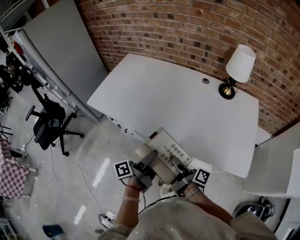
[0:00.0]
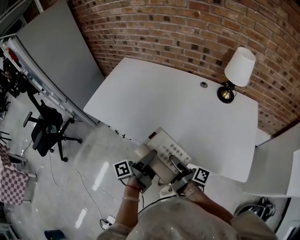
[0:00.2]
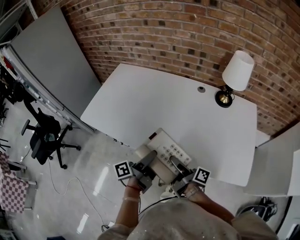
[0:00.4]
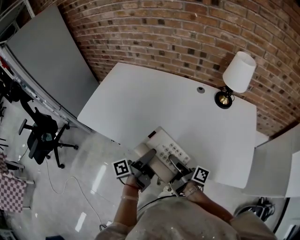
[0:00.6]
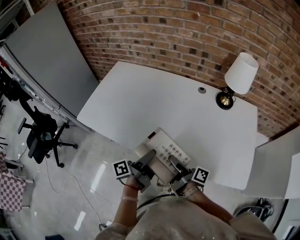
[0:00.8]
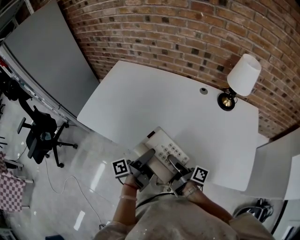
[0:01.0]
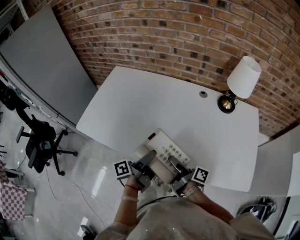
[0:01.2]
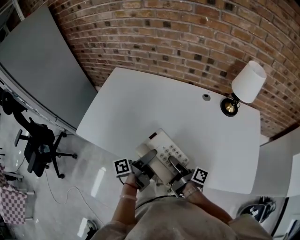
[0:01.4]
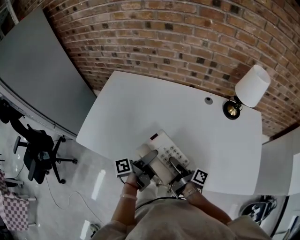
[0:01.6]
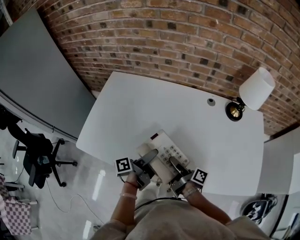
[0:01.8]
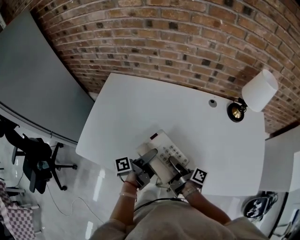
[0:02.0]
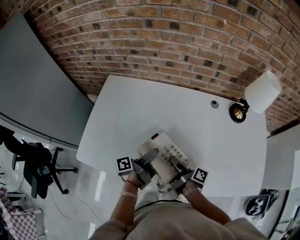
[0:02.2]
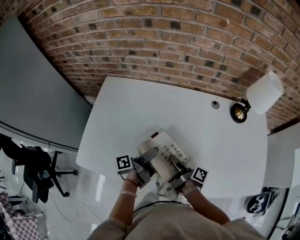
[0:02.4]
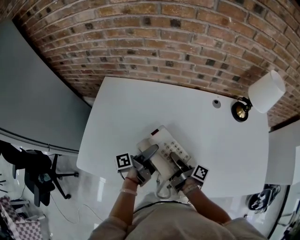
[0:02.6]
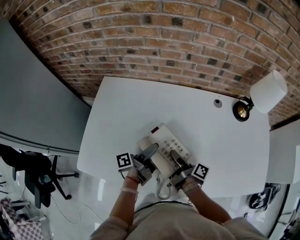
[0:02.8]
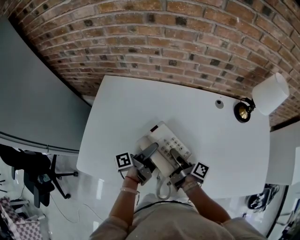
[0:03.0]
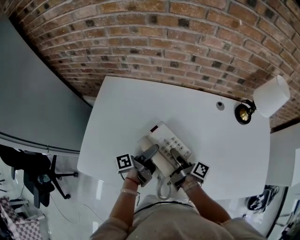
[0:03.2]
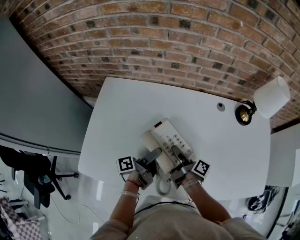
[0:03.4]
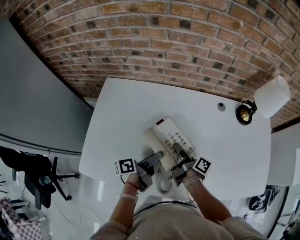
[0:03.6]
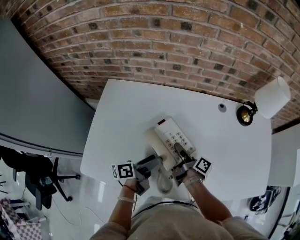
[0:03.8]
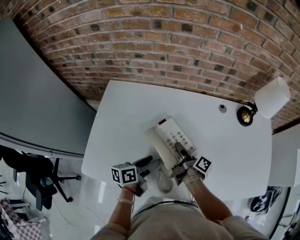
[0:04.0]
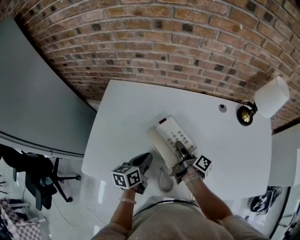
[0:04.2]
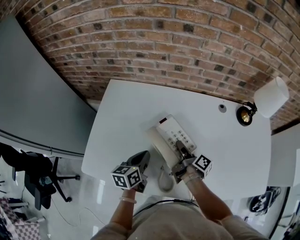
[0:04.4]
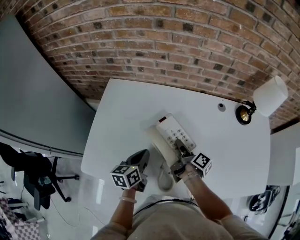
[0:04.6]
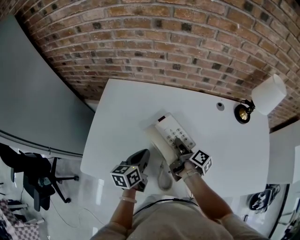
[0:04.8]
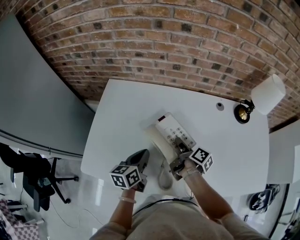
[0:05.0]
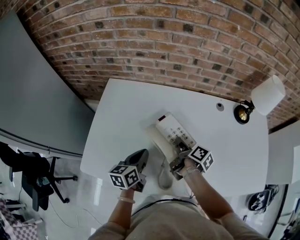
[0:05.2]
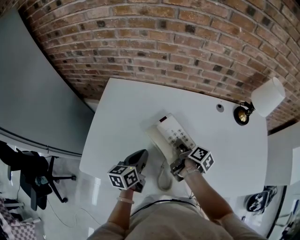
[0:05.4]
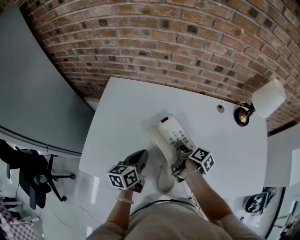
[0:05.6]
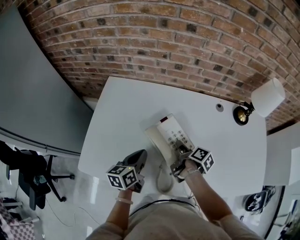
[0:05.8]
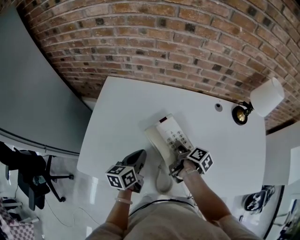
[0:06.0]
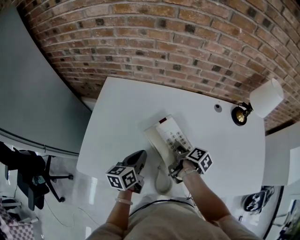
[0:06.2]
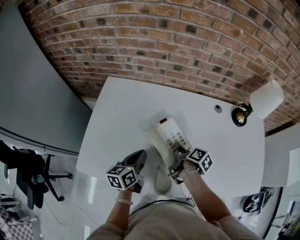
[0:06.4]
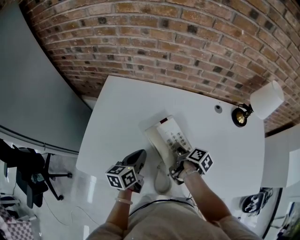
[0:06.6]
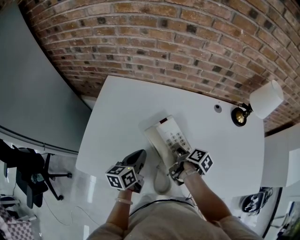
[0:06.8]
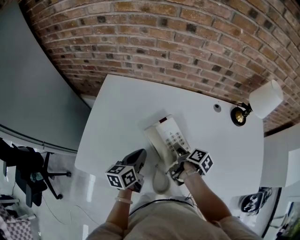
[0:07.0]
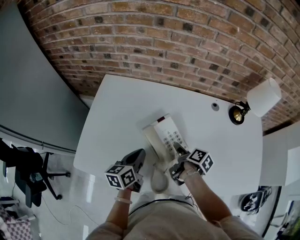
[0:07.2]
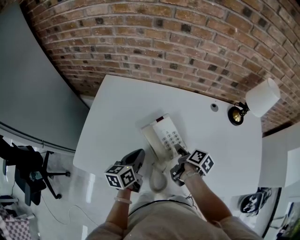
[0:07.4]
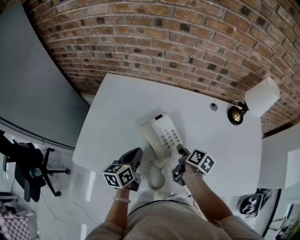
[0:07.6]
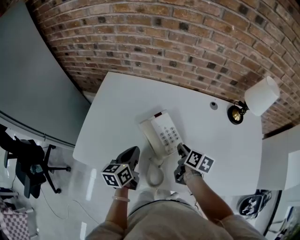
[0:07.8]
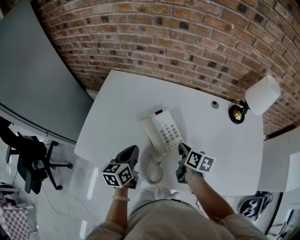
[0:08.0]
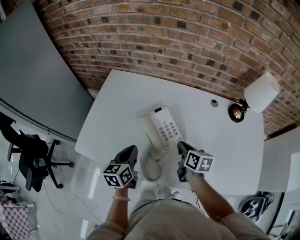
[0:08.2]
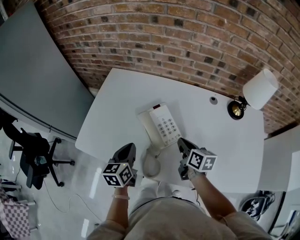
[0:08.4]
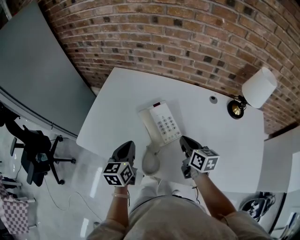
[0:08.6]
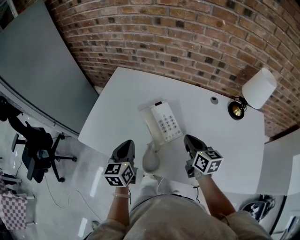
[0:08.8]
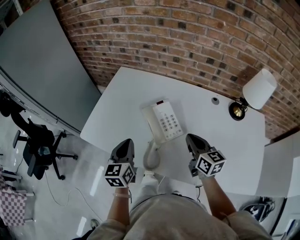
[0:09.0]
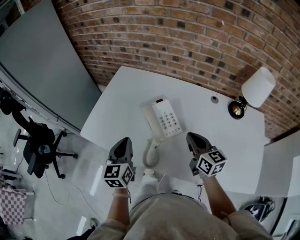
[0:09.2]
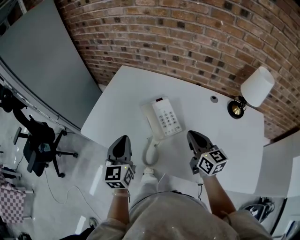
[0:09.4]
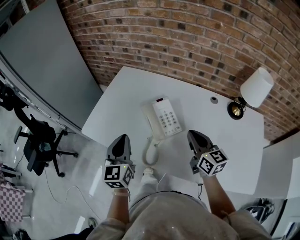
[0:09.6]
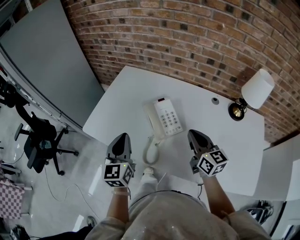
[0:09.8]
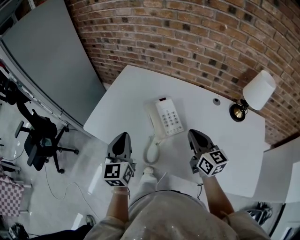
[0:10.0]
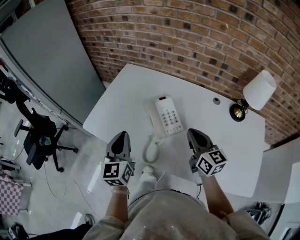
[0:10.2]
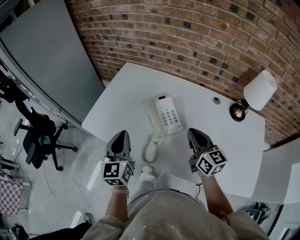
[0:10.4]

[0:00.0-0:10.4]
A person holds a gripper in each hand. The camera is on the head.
0:00.0 to 0:01.4: The left gripper changes place by roughly 20 cm.
0:01.4 to 0:03.0: The left gripper shifts by some 20 cm.
0:03.0 to 0:04.4: The left gripper shifts by some 5 cm, rotates around the line of its fingers by roughly 50 degrees, clockwise from behind, and closes up.
0:07.4 to 0:09.0: The left gripper ends up approximately 10 cm from where it was, and swivels some 30 degrees.
0:09.0 to 0:10.4: The left gripper shifts some 5 cm upward.

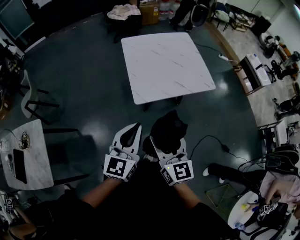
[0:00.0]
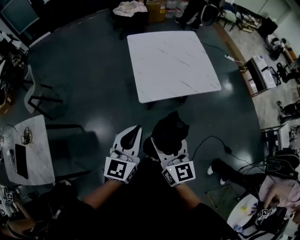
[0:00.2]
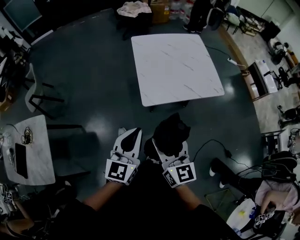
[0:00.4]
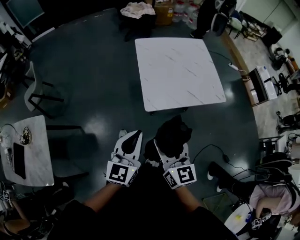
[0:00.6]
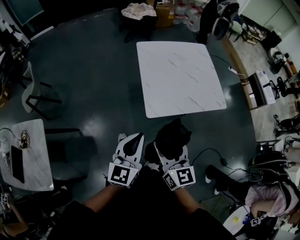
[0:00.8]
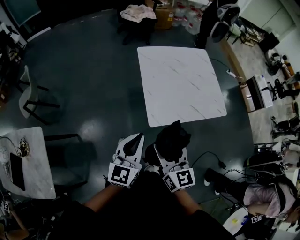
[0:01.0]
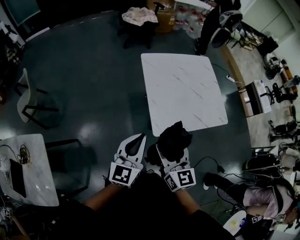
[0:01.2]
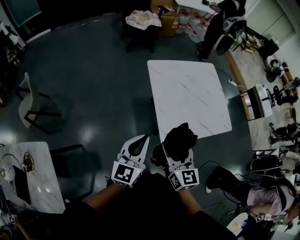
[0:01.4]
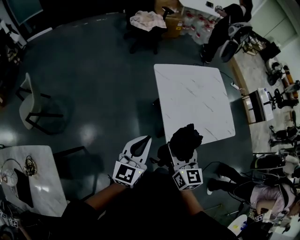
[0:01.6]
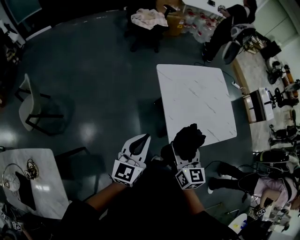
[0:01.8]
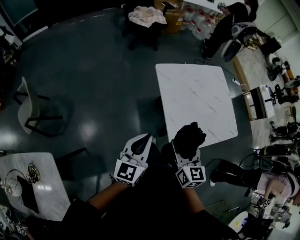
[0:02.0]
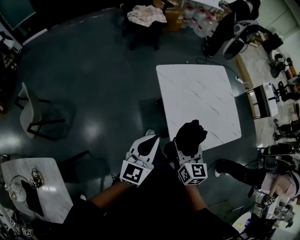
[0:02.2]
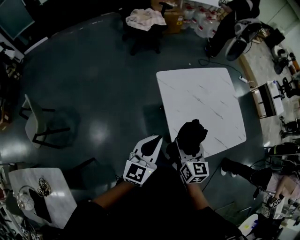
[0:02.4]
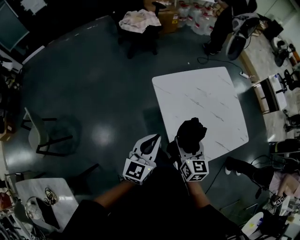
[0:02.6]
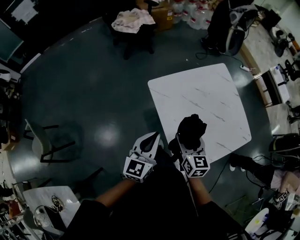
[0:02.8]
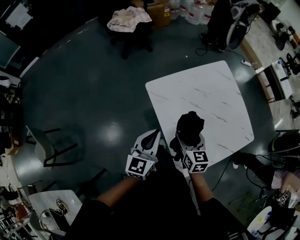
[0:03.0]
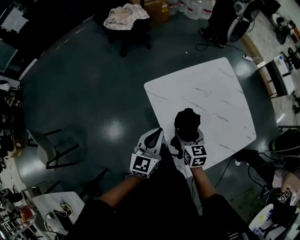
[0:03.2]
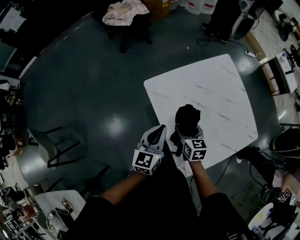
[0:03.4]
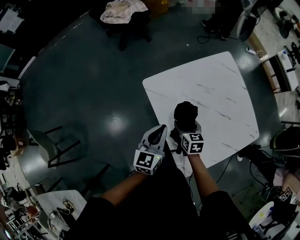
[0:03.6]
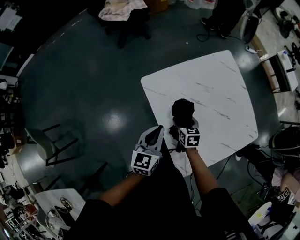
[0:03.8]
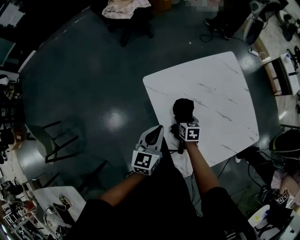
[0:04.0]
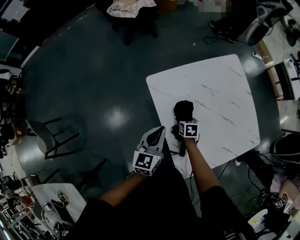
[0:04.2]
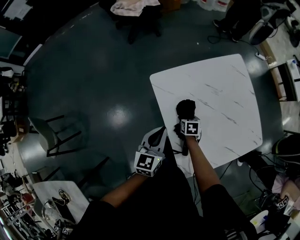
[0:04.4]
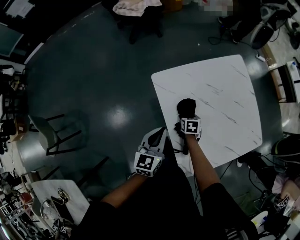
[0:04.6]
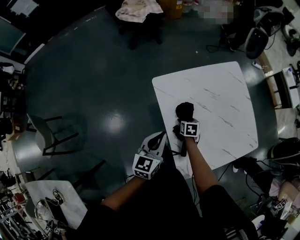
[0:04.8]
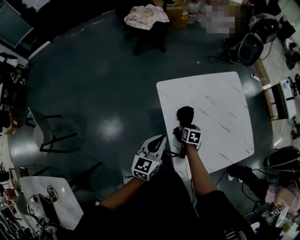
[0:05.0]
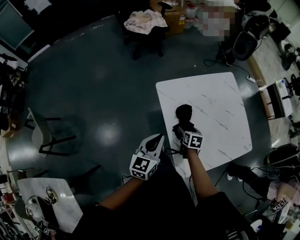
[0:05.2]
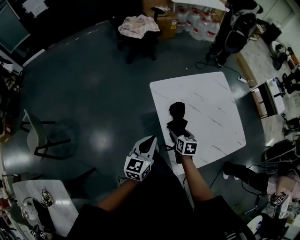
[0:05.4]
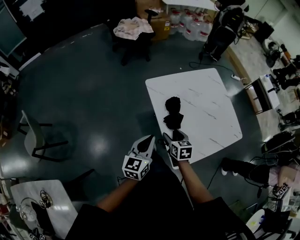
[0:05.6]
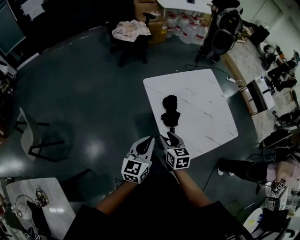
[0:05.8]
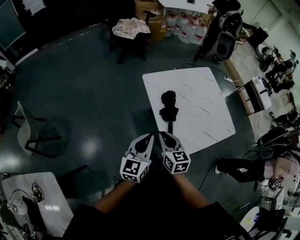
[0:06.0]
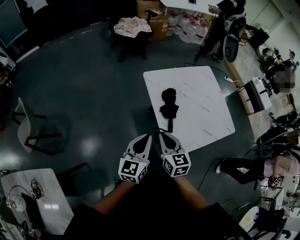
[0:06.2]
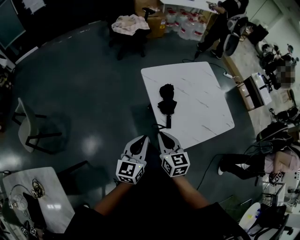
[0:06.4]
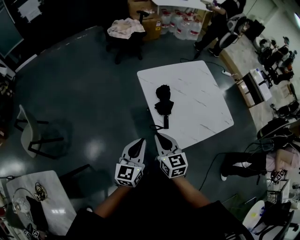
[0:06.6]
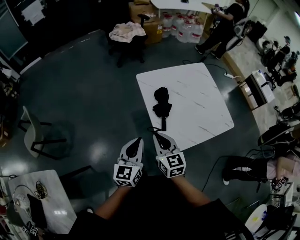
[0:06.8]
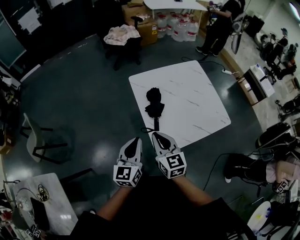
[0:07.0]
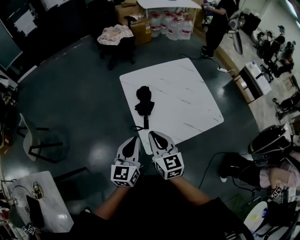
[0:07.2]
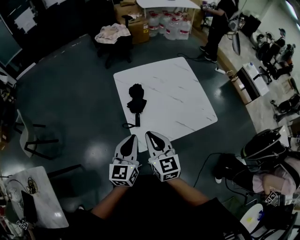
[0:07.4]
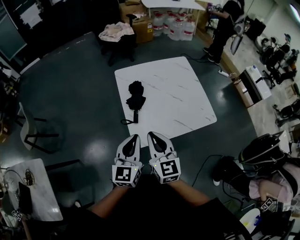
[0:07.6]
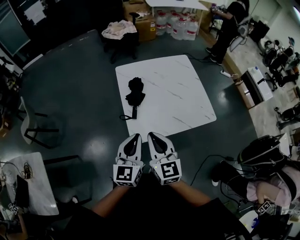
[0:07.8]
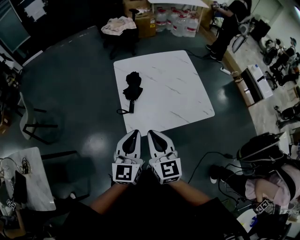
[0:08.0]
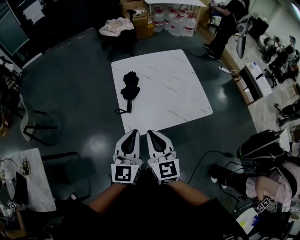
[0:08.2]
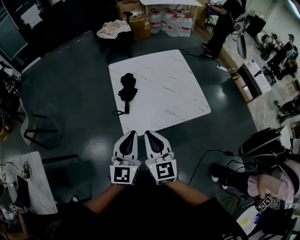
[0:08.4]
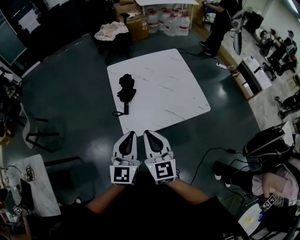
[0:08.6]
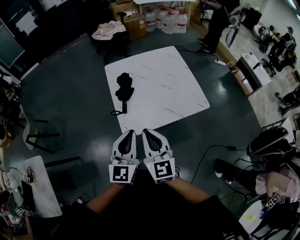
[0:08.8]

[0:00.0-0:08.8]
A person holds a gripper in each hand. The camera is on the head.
0:00.0 to 0:01.4: The grippers both shift forward and to the left by some 30 cm.
0:01.4 to 0:03.0: The left gripper moves forward, about 35 cm, while the right gripper heads forward and downward, covering roughly 35 cm, and rotates some 20 degrees.
0:03.0 to 0:04.4: The left gripper shifts roughly 10 cm downward, while the right gripper shifts approximately 25 cm downward, and angles its fingers downward, by about 40 degrees.
0:04.4 to 0:05.8: The right gripper goes roughly 35 cm upward and backward, and tilts its fingers approximately 30 degrees upward. Meanwhile the left gripper heads backward and upward, covering some 25 cm.
0:05.8 to 0:07.4: The right gripper is displaced to the right, upward and backward by approximately 25 cm, turns by some 20 degrees, and closes up. Meanwhile the left gripper heads to the right and backward, covering roughly 20 cm.
0:07.4 to 0:08.8: The right gripper goes roughly 15 cm backward and to the right, while the left gripper travels to the right and backward by approximately 15 cm.

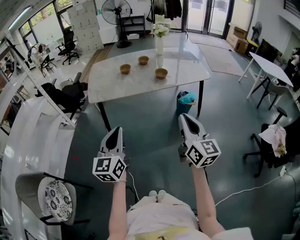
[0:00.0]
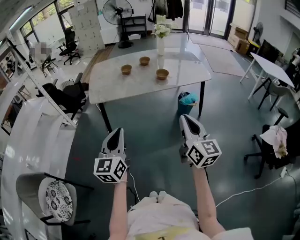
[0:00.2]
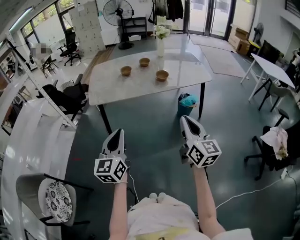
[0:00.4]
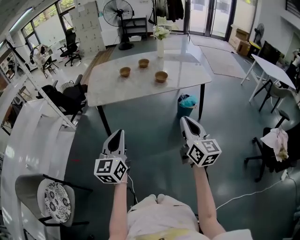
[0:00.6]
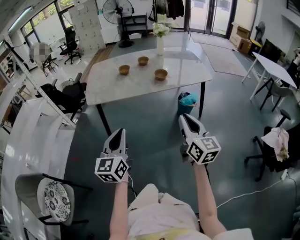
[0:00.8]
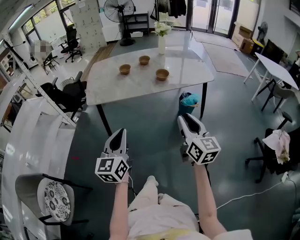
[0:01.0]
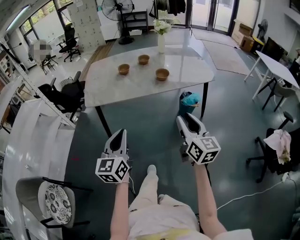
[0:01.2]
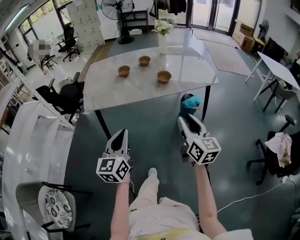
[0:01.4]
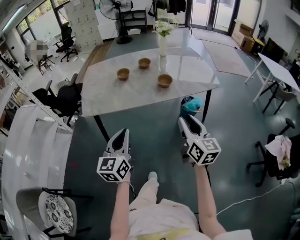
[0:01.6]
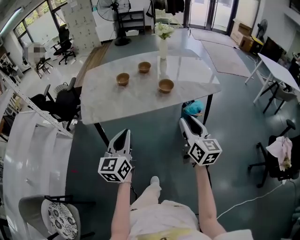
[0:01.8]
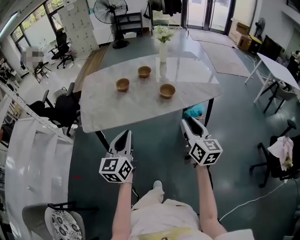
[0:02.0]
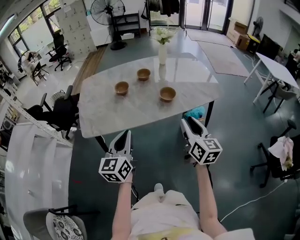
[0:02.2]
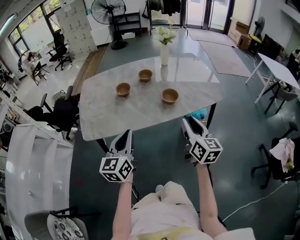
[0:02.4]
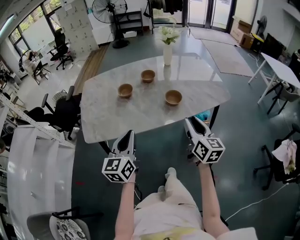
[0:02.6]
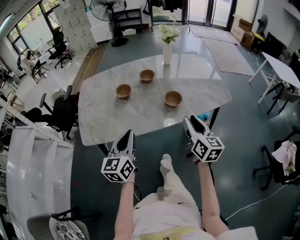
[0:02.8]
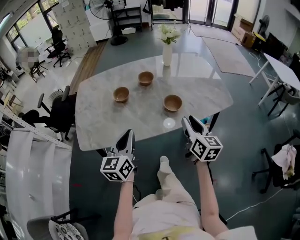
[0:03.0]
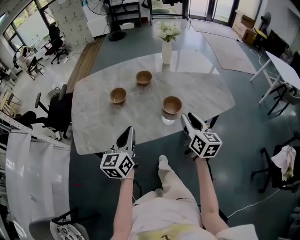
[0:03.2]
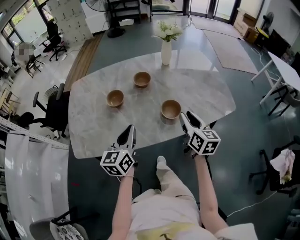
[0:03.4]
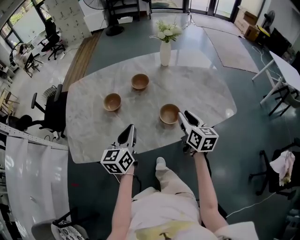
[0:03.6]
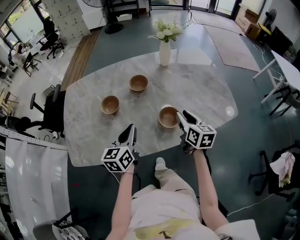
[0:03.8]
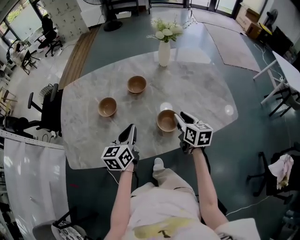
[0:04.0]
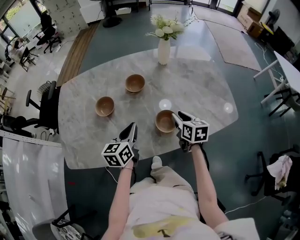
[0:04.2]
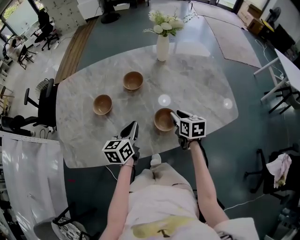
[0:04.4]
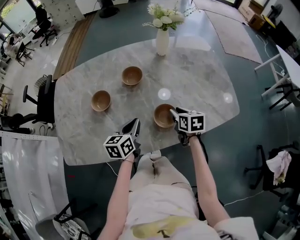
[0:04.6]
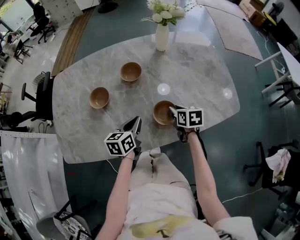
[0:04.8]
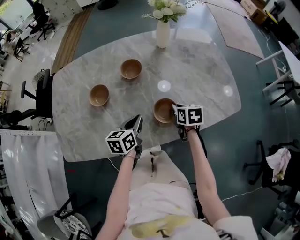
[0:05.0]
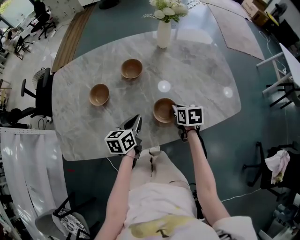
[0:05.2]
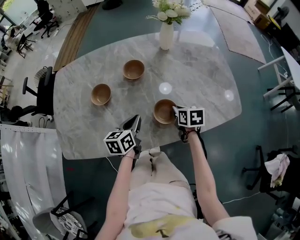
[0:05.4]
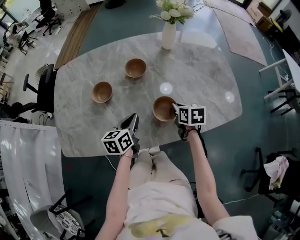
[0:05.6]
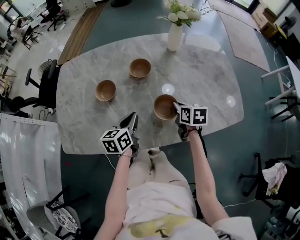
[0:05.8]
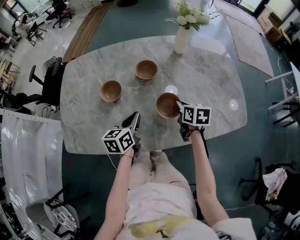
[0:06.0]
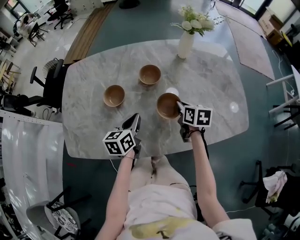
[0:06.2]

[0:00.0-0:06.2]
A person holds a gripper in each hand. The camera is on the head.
0:00.0 to 0:01.6: The grippers both shift forward by approximately 20 cm. The right gripper opens its fingers.
0:01.6 to 0:03.2: Both grippers move forward, approximately 30 cm.
0:03.2 to 0:04.6: The right gripper travels forward and downward by approximately 25 cm, and points its fingers roughly 30 degrees further downward. Meanwhile the left gripper travels forward, downward and to the right by about 25 cm, and rotates roughly 20 degrees.
0:04.6 to 0:06.2: The right gripper is displaced forward by roughly 5 cm, and closes up, while the left gripper heads to the left, covering about 5 cm.
